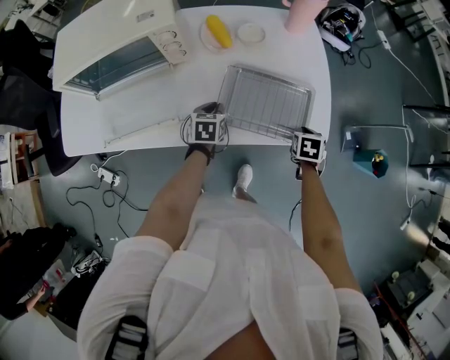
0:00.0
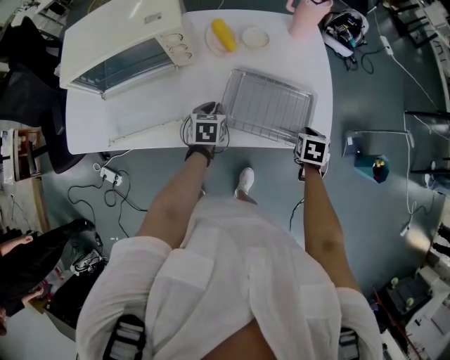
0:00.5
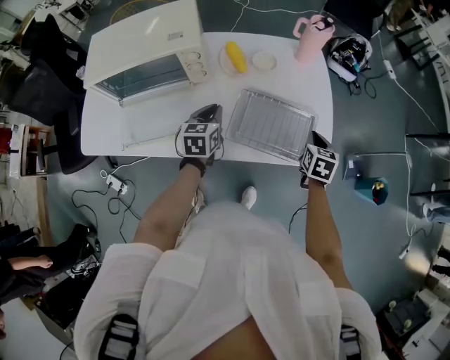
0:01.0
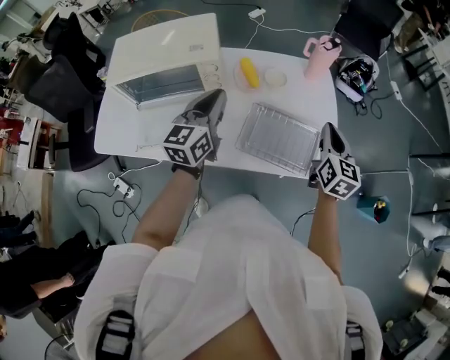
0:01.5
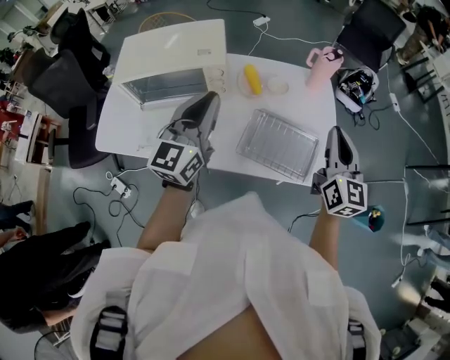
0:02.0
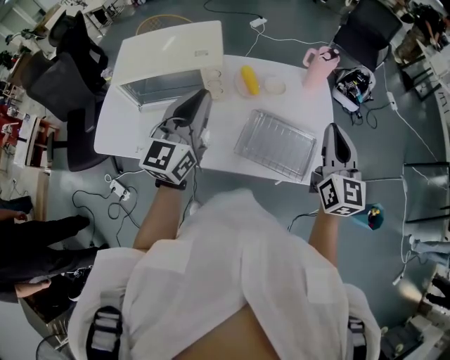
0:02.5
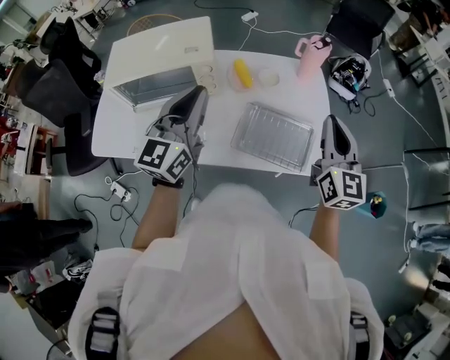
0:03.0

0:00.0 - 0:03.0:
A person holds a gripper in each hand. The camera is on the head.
0:00.0 - 0:01.5: The two grippers go approximately 30 cm upward. The right gripper points its fingers roughly 50 degrees further upward; the left gripper tilts its fingers about 50 degrees upward.
0:01.5 - 0:03.0: The right gripper is displaced upward by about 10 cm. Meanwhile the left gripper travels upward and backward by approximately 10 cm.

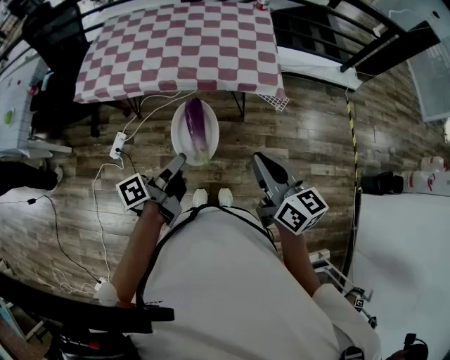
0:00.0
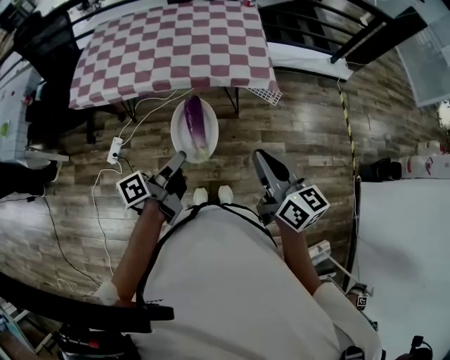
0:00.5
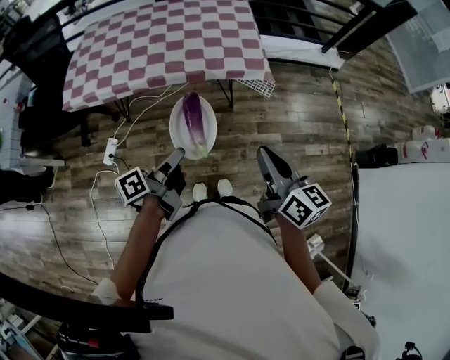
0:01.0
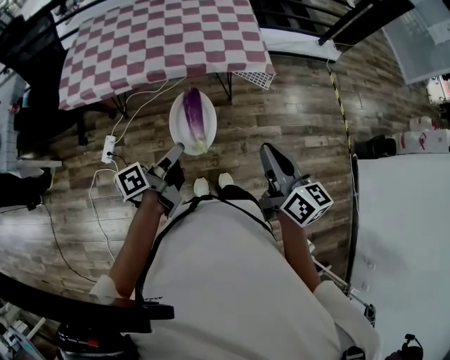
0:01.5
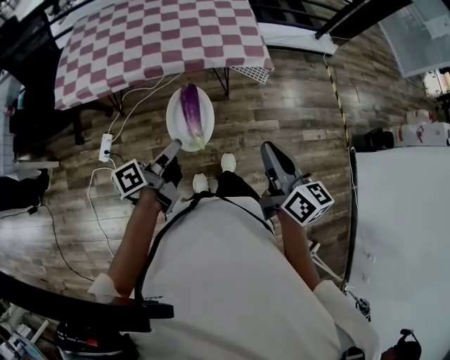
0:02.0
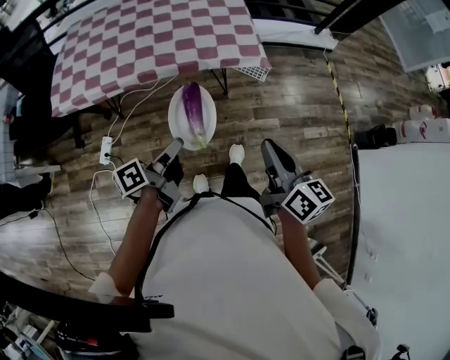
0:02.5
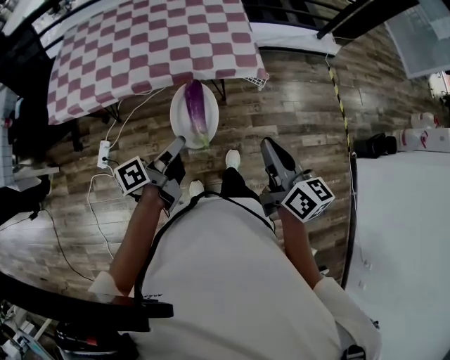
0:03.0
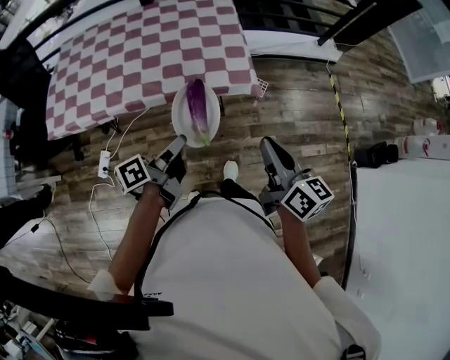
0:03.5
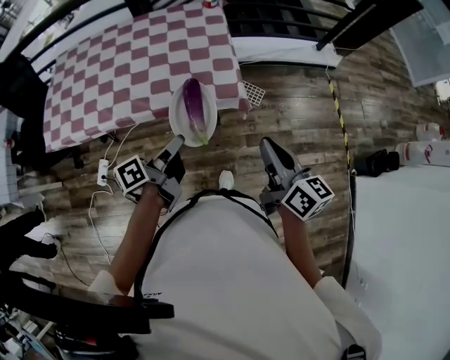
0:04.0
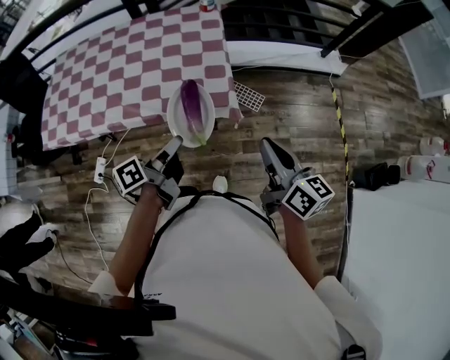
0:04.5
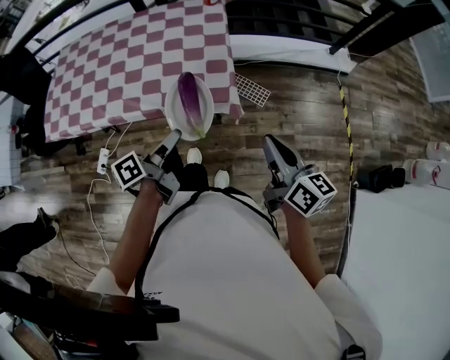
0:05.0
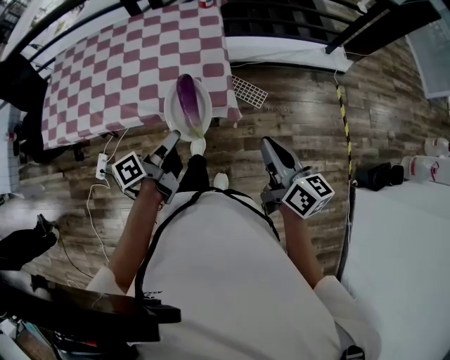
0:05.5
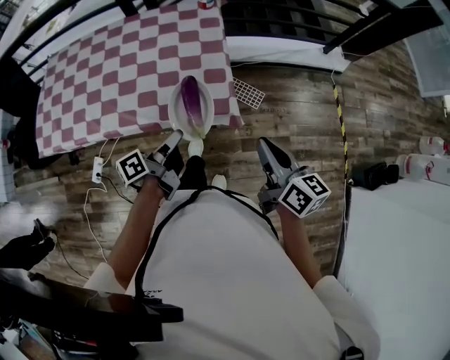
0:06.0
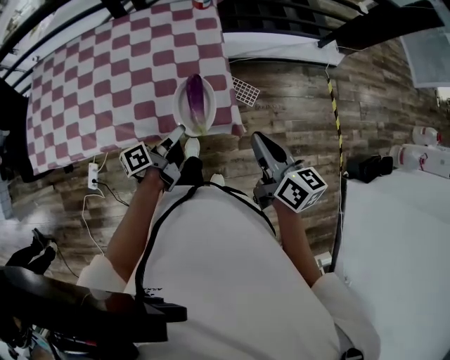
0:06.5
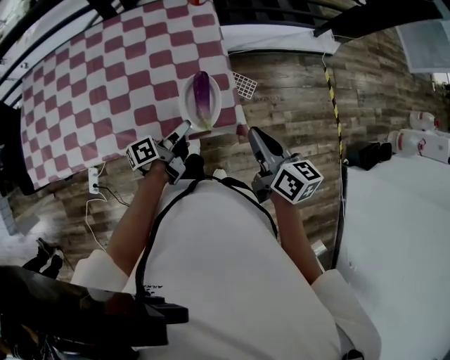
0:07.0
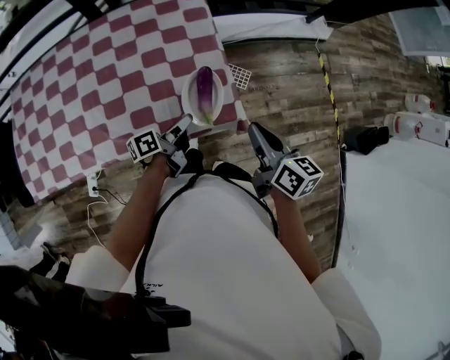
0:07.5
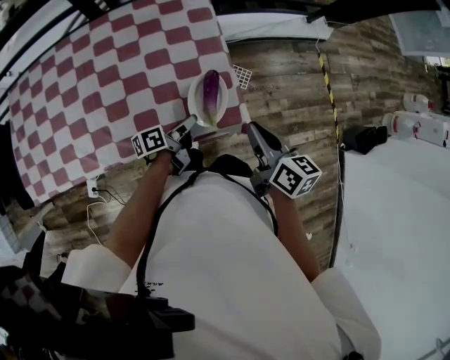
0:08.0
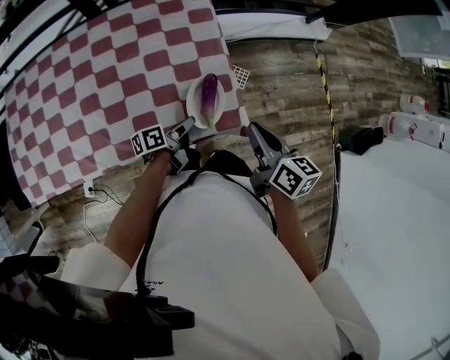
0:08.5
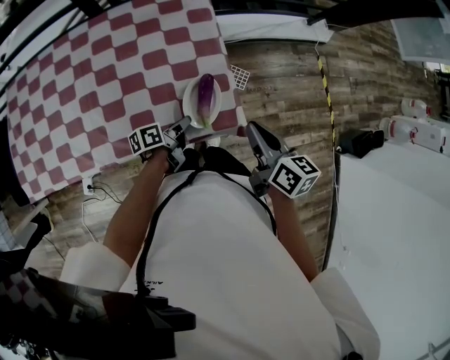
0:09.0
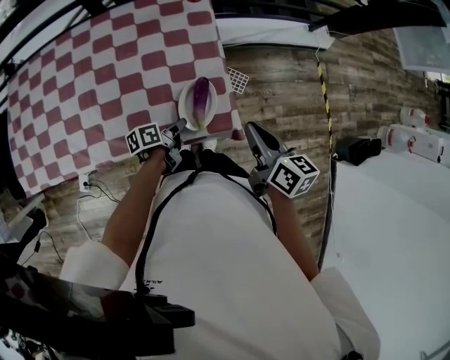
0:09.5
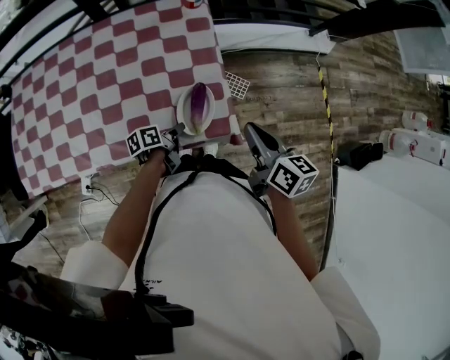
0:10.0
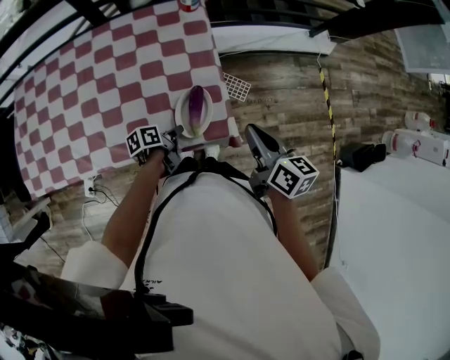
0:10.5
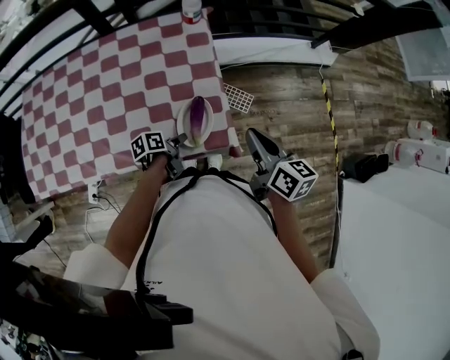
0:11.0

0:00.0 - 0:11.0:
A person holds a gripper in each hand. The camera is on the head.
0:00.0 - 0:02.0: The right gripper shifts by some 5 cm.
0:02.0 - 0:03.5: The right gripper moves roughly 20 cm.
0:03.5 - 0:05.5: The right gripper changes place by roughly 20 cm.
0:05.5 - 0:07.5: The right gripper ends up approximately 20 cm from where it was.
0:09.0 - 0:11.0: The right gripper changes place by some 5 cm.

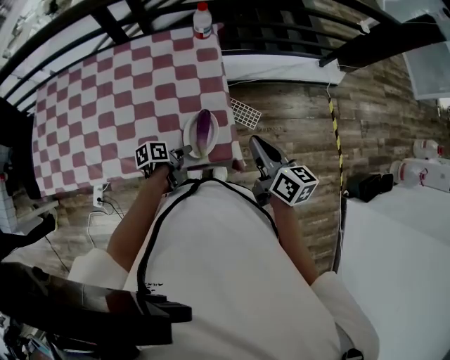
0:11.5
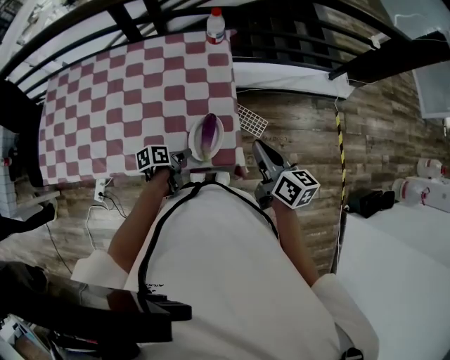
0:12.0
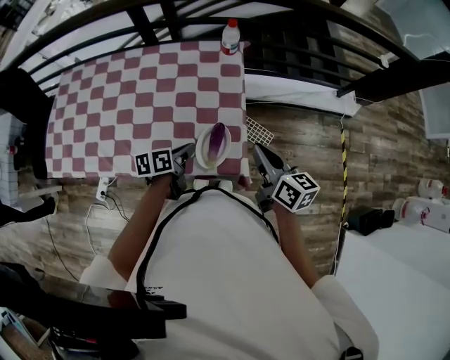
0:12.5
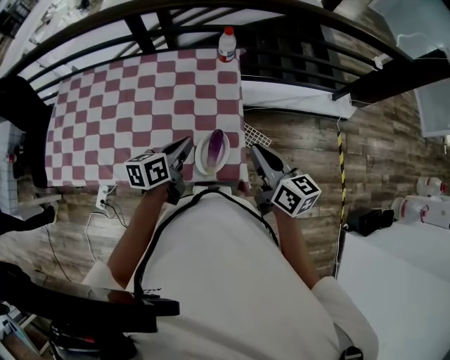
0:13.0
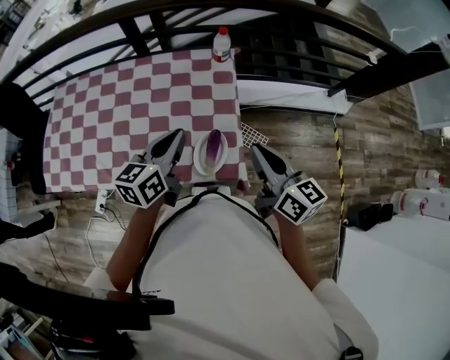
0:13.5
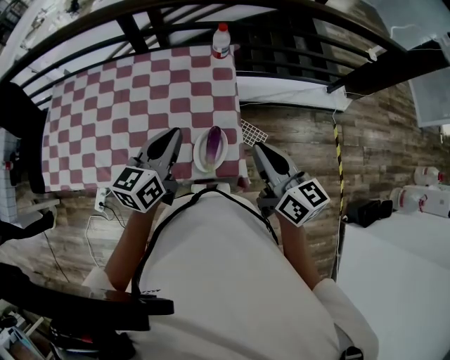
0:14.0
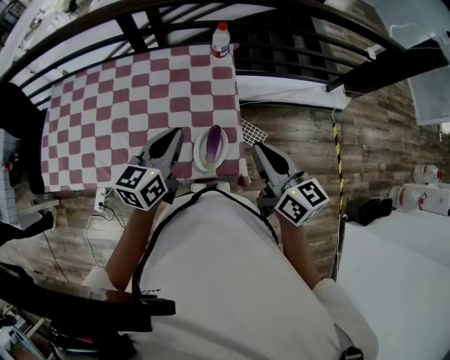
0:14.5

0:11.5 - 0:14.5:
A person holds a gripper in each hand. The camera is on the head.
0:11.5 - 0:13.0: The right gripper shifts about 5 cm upward.
0:13.0 - 0:14.5: The right gripper moves upward, some 5 cm.

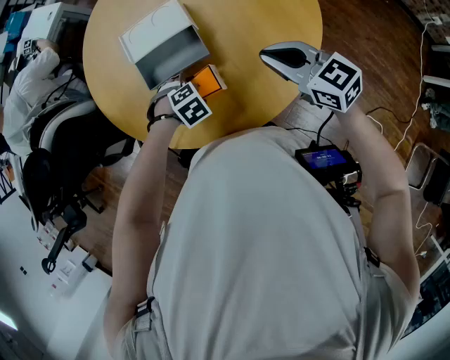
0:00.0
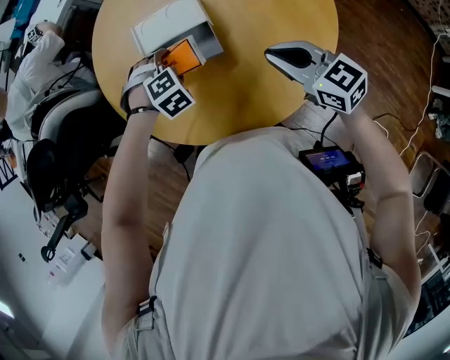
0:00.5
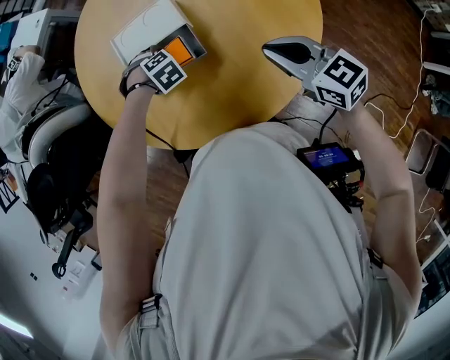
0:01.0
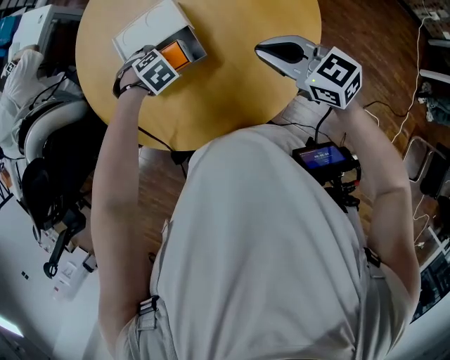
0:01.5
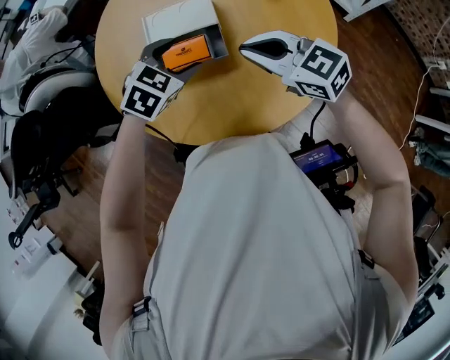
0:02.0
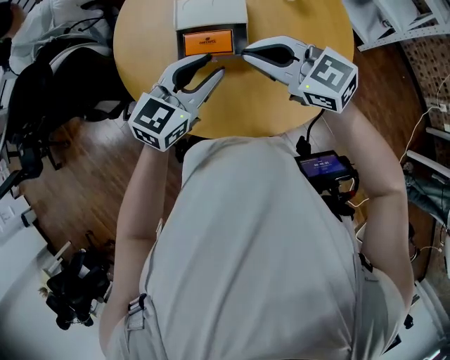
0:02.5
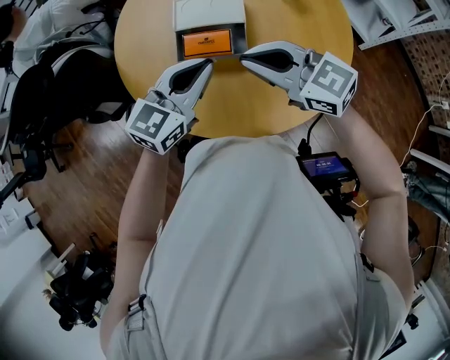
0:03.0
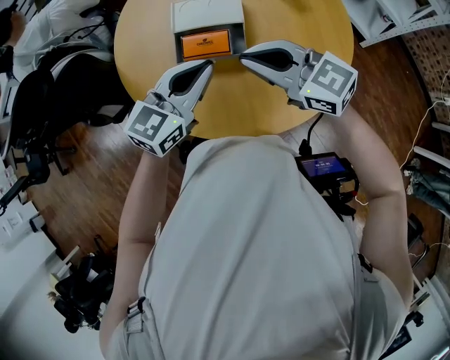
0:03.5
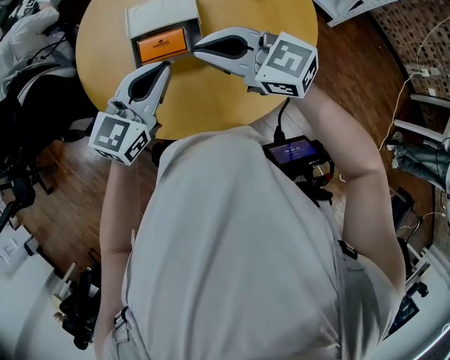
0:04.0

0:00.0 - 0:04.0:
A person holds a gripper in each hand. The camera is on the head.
0:00.0 - 0:02.0: The left gripper moves up and down over about 20 cm, changing direction 2 times, and tilts its fingers about 40 degrees upward. The right gripper moves about 10 cm.
0:02.0 - 0:04.0: The left gripper goes approximately 10 cm upward and backward, angles its fingers upward, by some 40 degrees, and closes its fingers, while the right gripper shifts by some 5 cm.

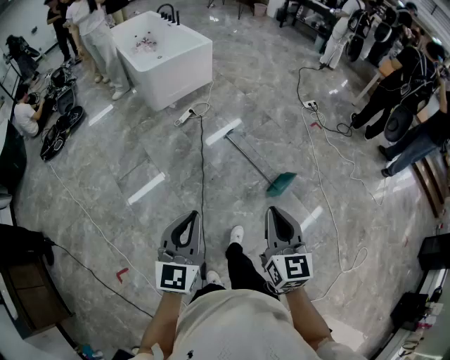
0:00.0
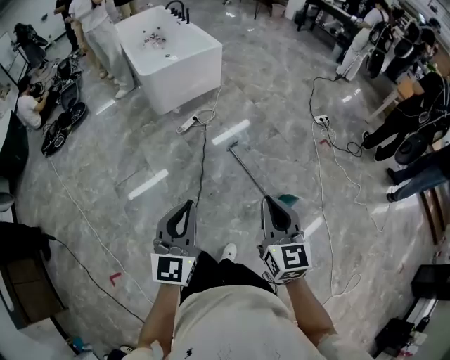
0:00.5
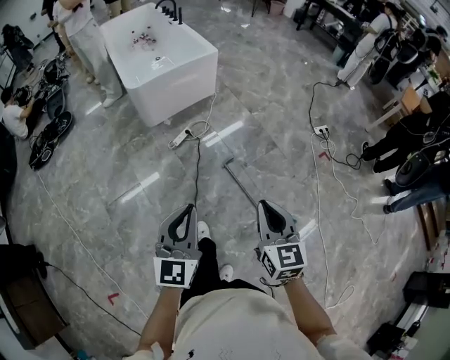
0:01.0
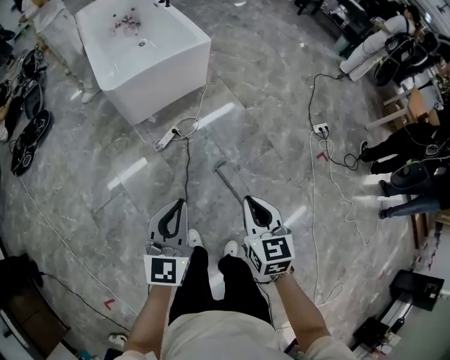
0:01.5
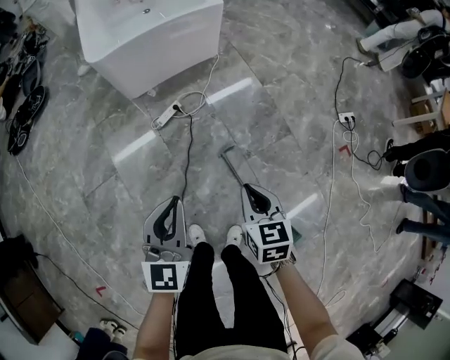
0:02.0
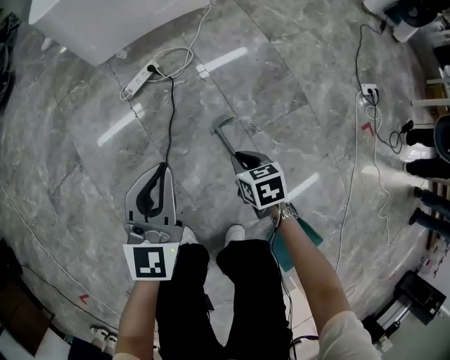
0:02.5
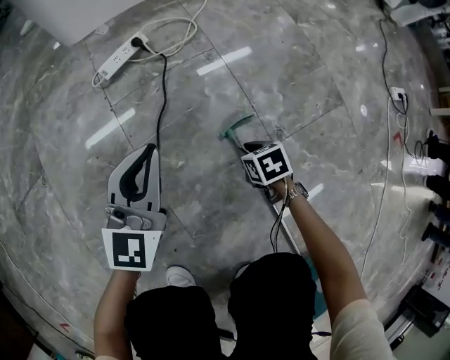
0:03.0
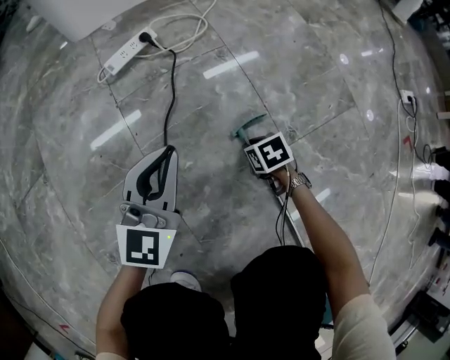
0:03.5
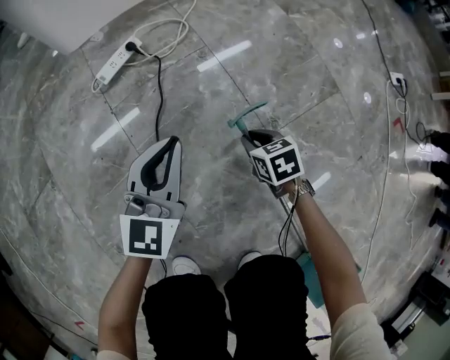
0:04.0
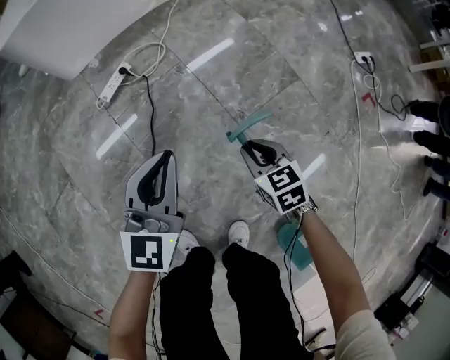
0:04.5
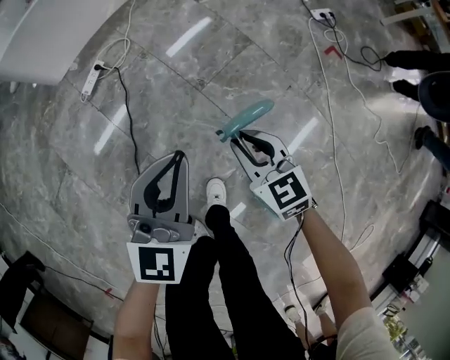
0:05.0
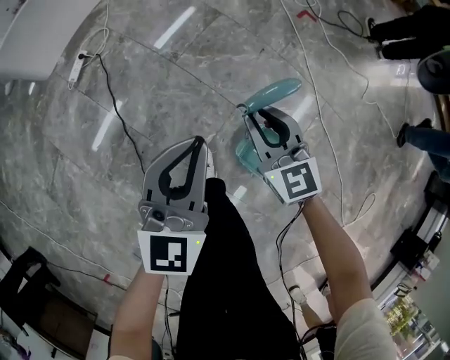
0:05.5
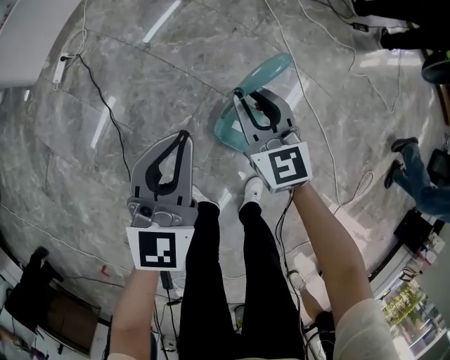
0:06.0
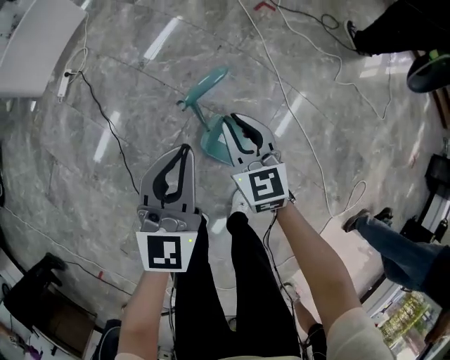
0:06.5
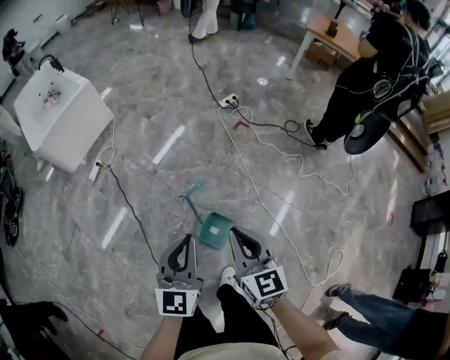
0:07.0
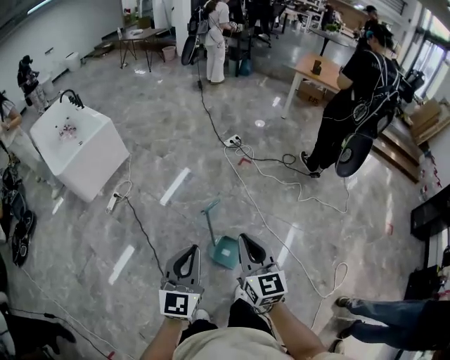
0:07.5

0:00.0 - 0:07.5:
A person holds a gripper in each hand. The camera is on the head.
0:00.0 - 0:02.0: The pair of grippers is taken forward, about 70 cm. The right gripper is displaced downward by some 35 cm, and turns by approximately 30 degrees.
0:02.0 - 0:04.0: The two grippers go some 60 cm downward. The right gripper turns by approximately 20 degrees.
0:04.0 - 0:05.5: The pair of grippers is taken approximately 50 cm. The right gripper moves upward, approximately 50 cm, and tips its fingers upward by about 40 degrees. The left gripper rotates roughly 20 degrees.
0:05.5 - 0:07.5: The left gripper is displaced upward and backward by about 50 cm. The right gripper goes about 60 cm upward, backward and to the right, and rotates some 20 degrees.
